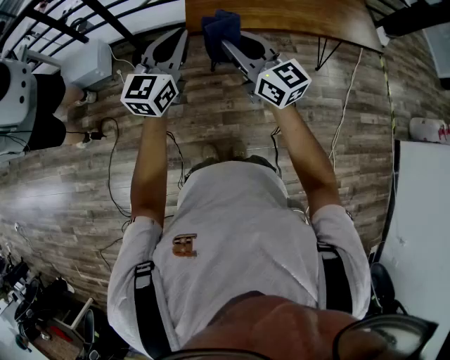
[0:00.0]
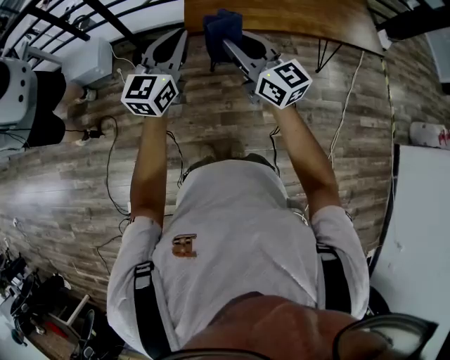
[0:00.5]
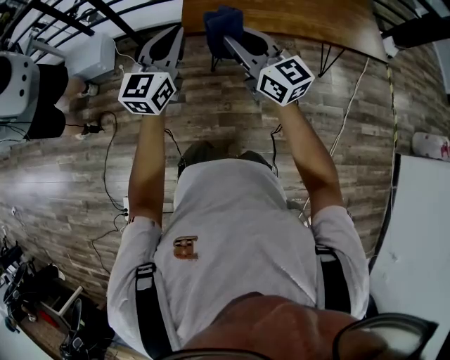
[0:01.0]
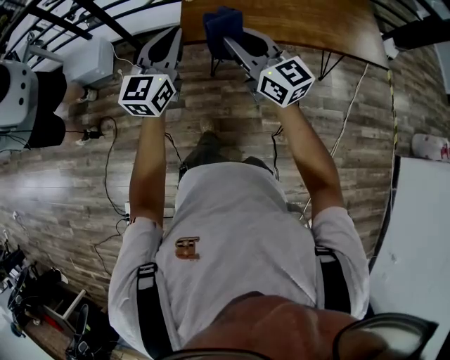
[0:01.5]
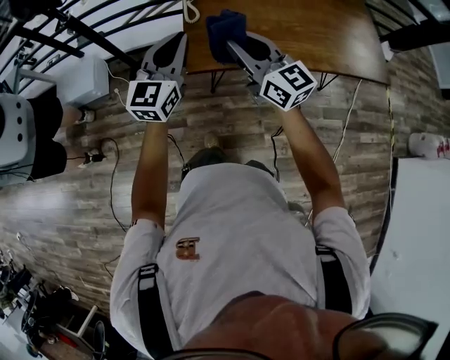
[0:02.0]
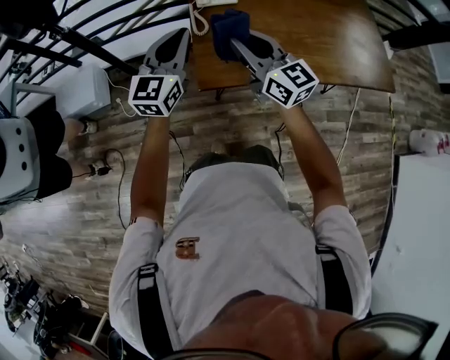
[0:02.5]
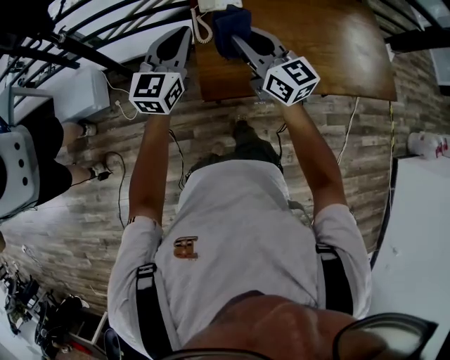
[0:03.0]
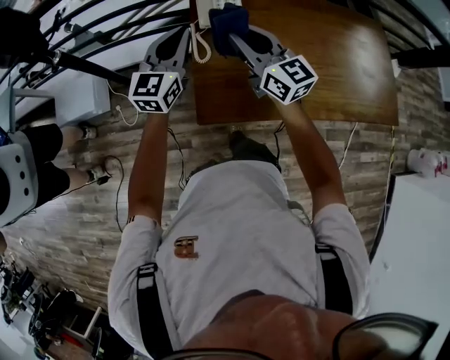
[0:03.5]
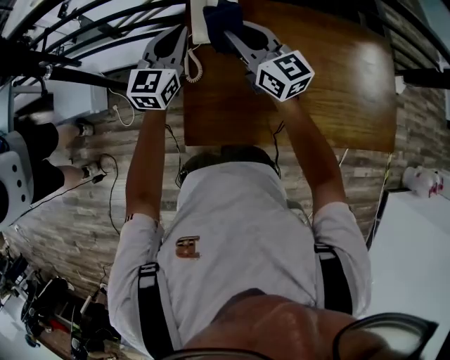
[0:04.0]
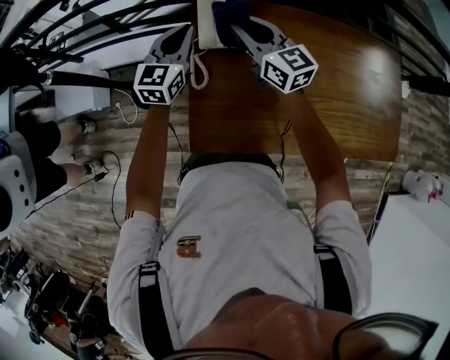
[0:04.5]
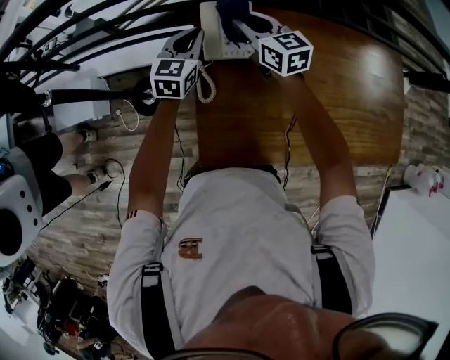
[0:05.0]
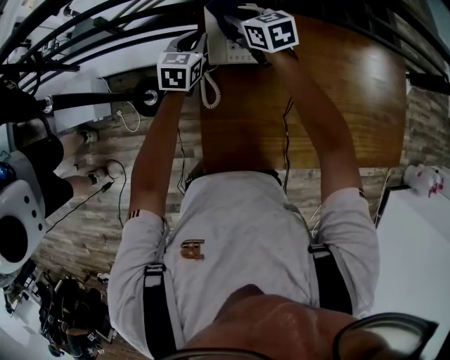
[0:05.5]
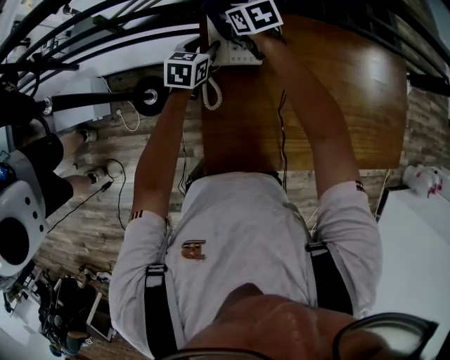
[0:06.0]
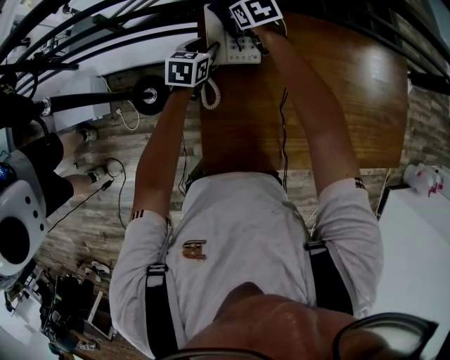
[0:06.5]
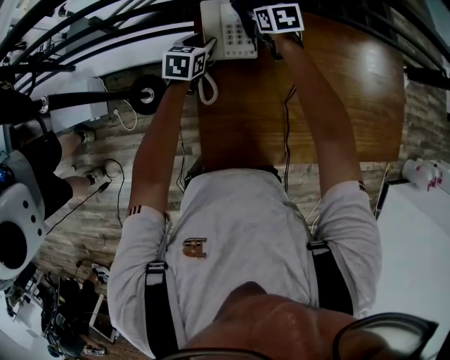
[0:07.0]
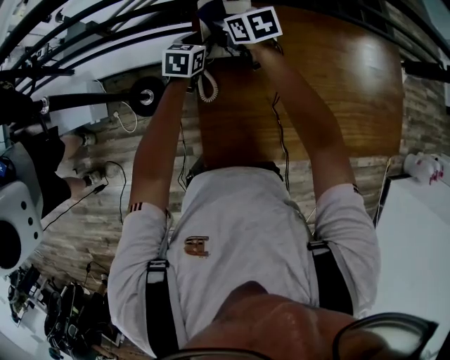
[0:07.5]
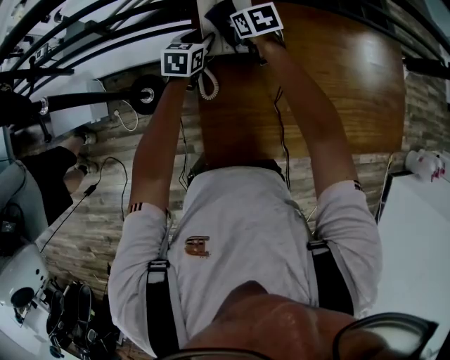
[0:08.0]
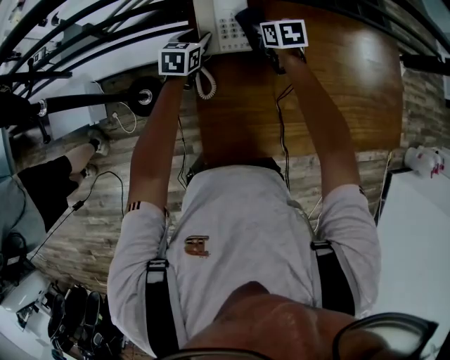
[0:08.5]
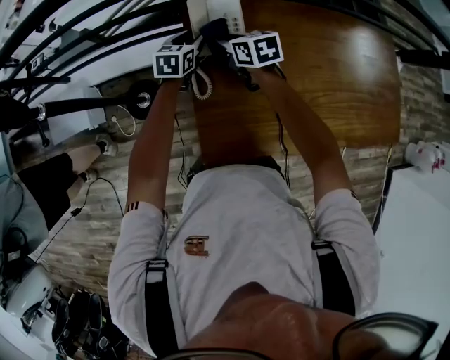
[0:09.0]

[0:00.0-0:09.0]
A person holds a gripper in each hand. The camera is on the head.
0:00.0 to 0:02.0: The grippers both shift forward by roughly 25 cm.
0:02.0 to 0:04.5: The two grippers travel together, forward, roughly 50 cm.
0:04.5 to 0:07.0: The left gripper goes some 20 cm downward and forward, rotates approximately 30 degrees, and opens up. Meanwhile the right gripper is displaced forward and downward by roughly 25 cm, and tips its fingers downward by some 40 degrees.
0:07.0 to 0:09.0: The right gripper travels backward and to the left by about 15 cm.

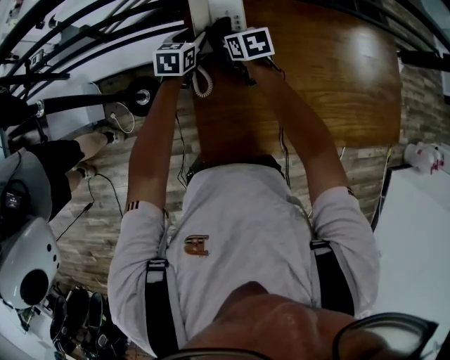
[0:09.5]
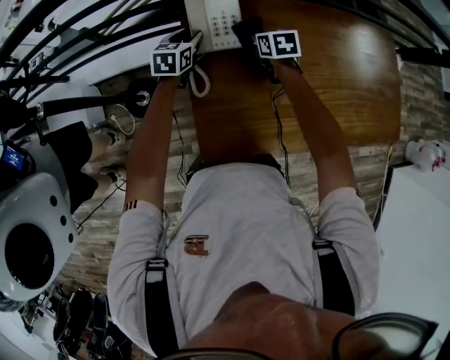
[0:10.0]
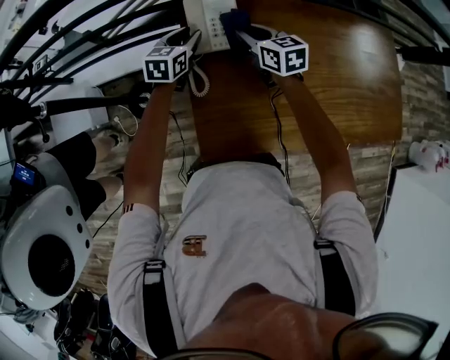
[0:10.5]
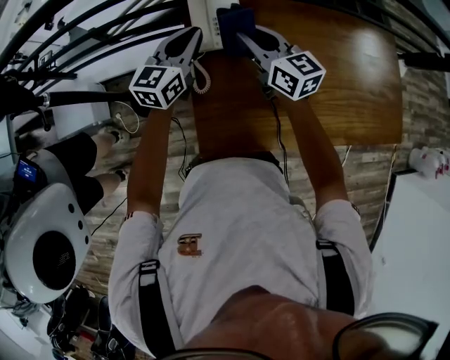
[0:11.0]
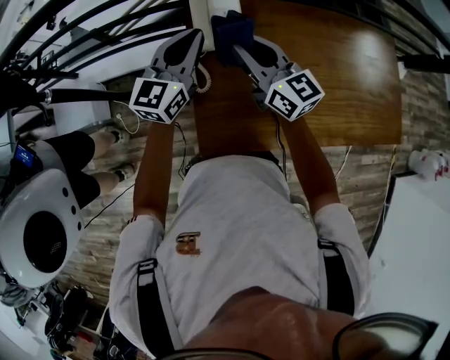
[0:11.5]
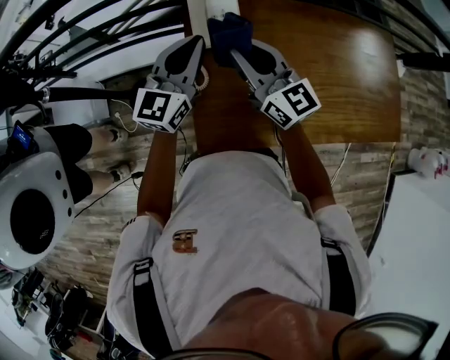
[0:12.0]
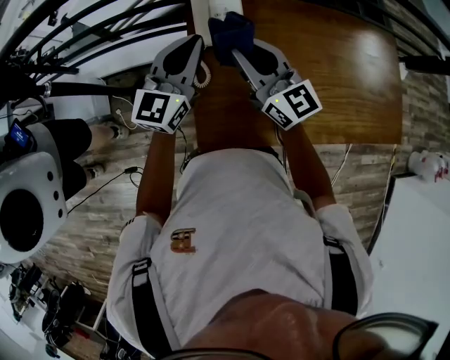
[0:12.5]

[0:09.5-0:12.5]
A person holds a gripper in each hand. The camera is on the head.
0:09.5 to 0:11.0: The two grippers go some 20 cm upward and backward. The left gripper turns by roughly 30 degrees, and closes up, while the right gripper tilts its fingers roughly 40 degrees upward.
0:11.0 to 0:12.5: The two grippers go approximately 10 cm backward and upward.

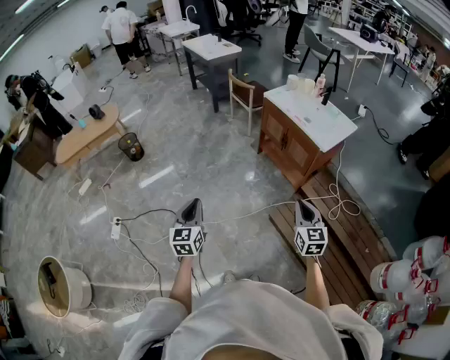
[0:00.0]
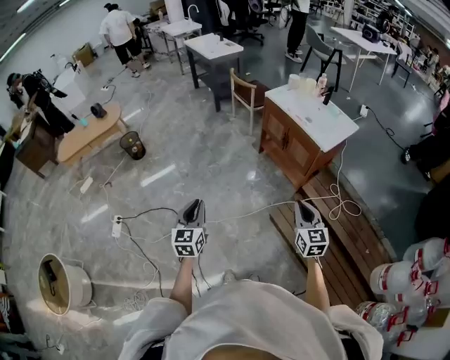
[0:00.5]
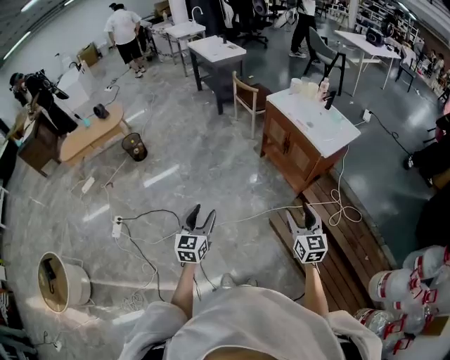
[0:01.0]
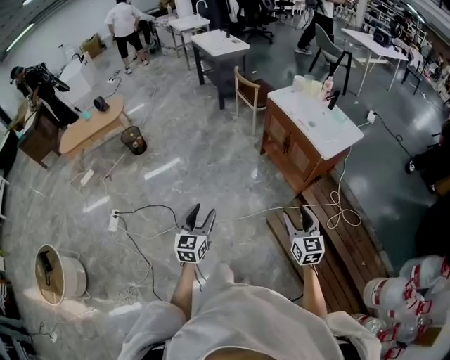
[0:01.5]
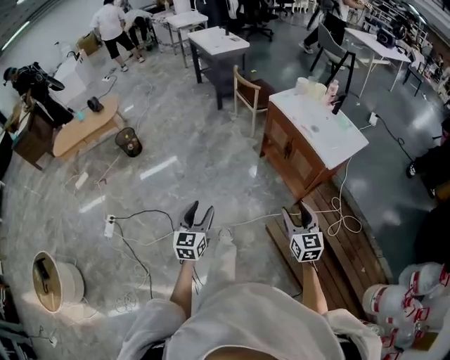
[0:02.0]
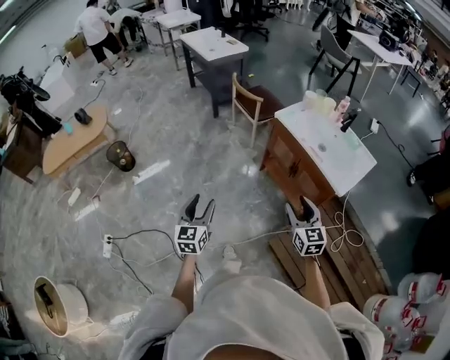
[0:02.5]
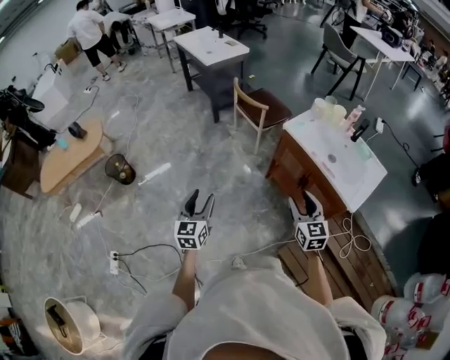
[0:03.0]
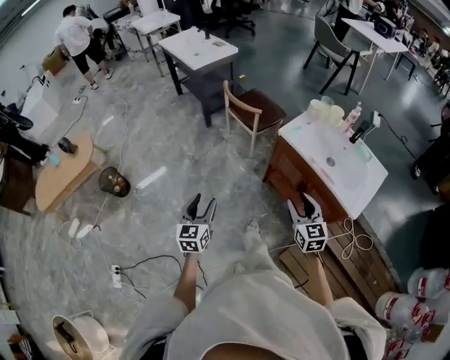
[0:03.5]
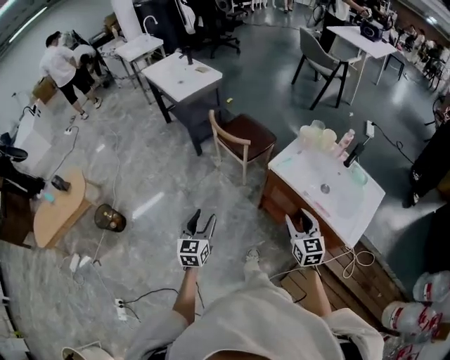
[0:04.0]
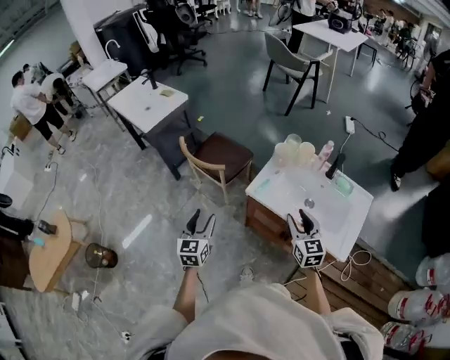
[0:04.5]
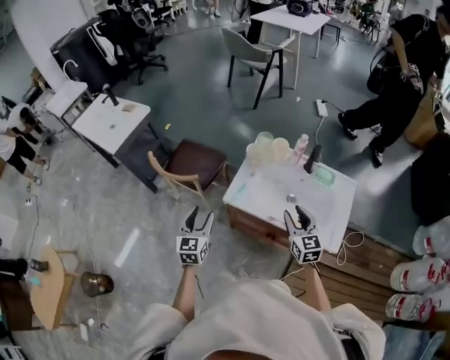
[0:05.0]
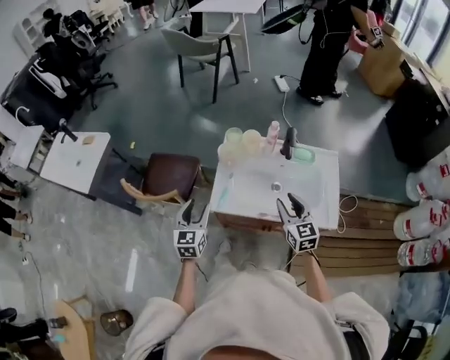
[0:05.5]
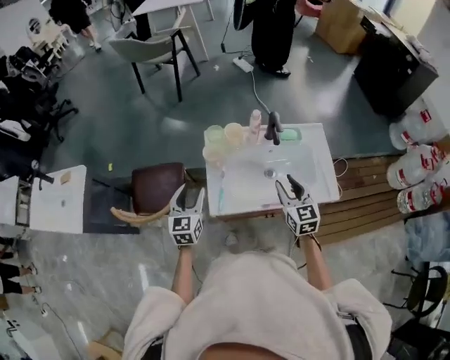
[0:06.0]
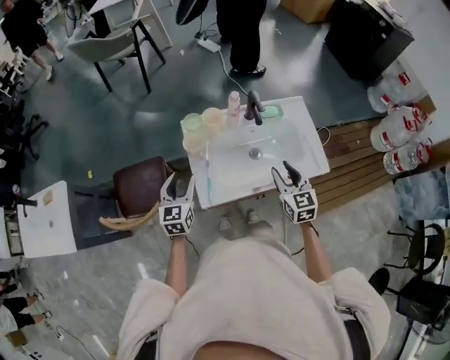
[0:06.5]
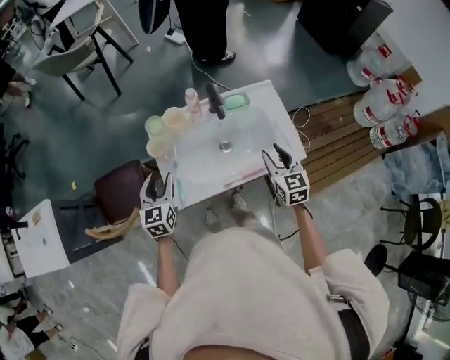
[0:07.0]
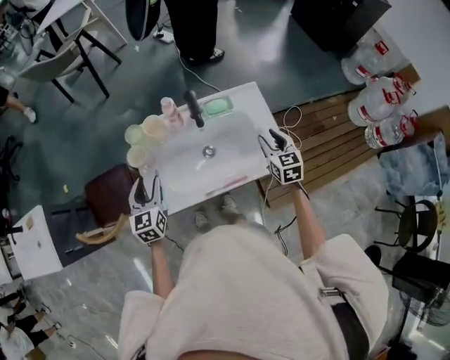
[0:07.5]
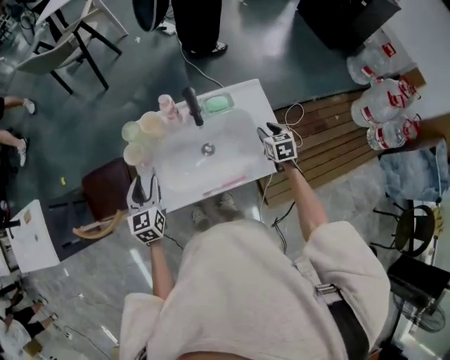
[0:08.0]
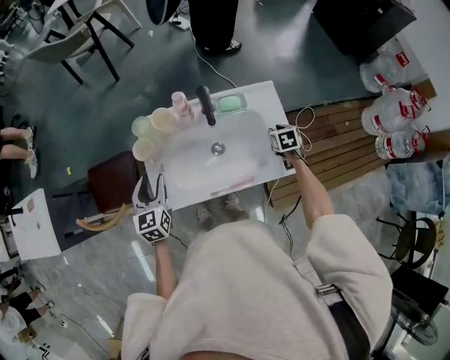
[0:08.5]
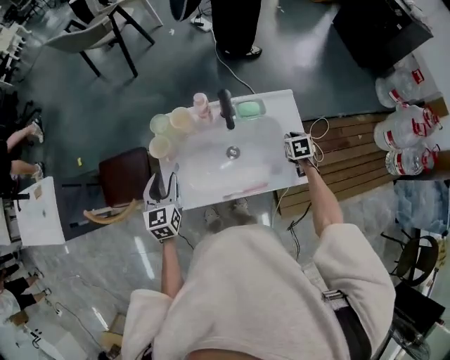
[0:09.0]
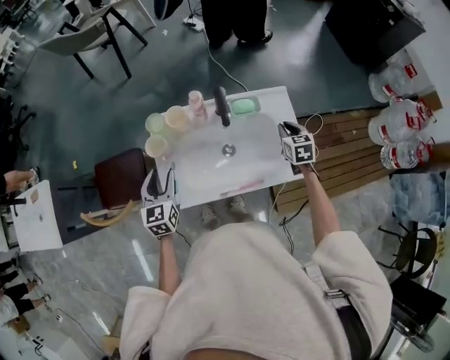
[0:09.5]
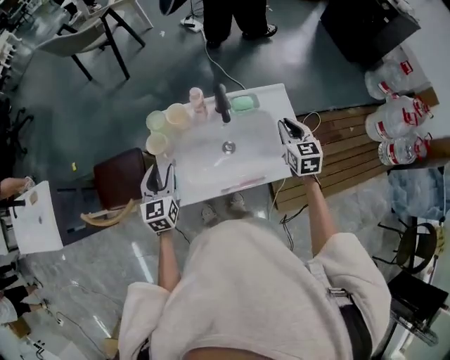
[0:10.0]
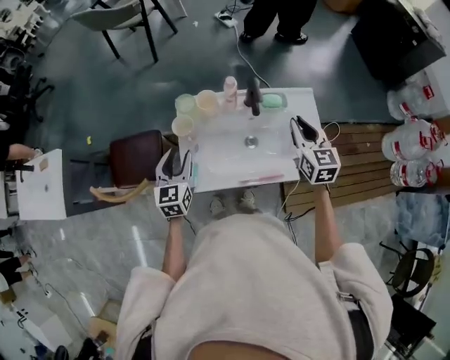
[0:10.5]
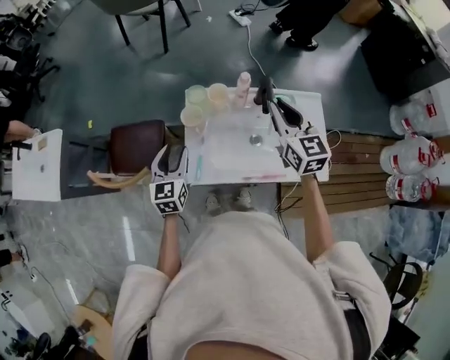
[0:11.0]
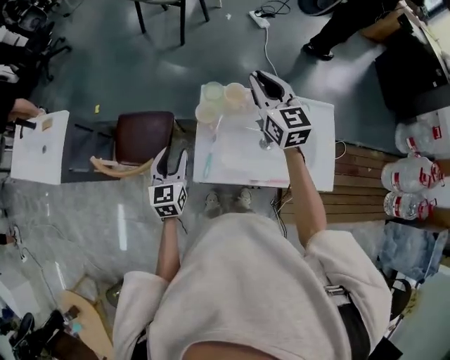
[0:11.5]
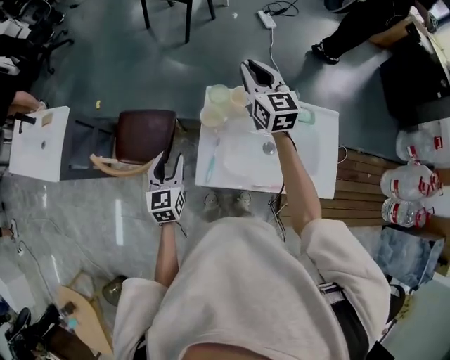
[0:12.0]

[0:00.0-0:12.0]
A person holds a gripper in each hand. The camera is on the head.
0:00.0 to 0:02.0: The left gripper moves forward, to the right and downward, about 15 cm, and opens its fingers, while the right gripper is displaced forward by approximately 15 cm, and opens.
0:02.0 to 0:04.0: The pair of grippers is taken forward, approximately 60 cm.
0:04.0 to 0:06.0: The right gripper shifts by roughly 25 cm, and turns by some 50 degrees, while the left gripper changes place by about 50 cm, and rotates about 50 degrees.
0:06.0 to 0:08.0: The right gripper goes some 35 cm to the right, downward and forward, and rotates about 30 degrees; the left gripper goes approximately 15 cm to the right and forward.
0:08.0 to 0:10.0: The right gripper is displaced upward and to the left by some 15 cm, and closes its fingers.
0:10.0 to 0:12.0: The left gripper moves to the left, some 15 cm. The right gripper travels to the left, forward and upward by about 40 cm, and changes its angle by roughly 30 degrees.

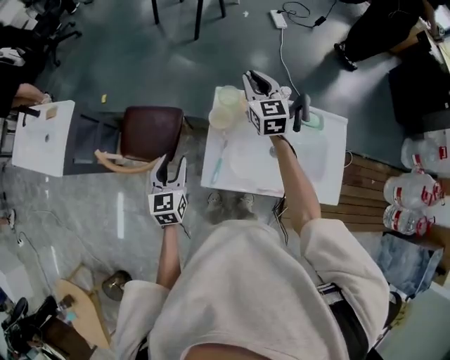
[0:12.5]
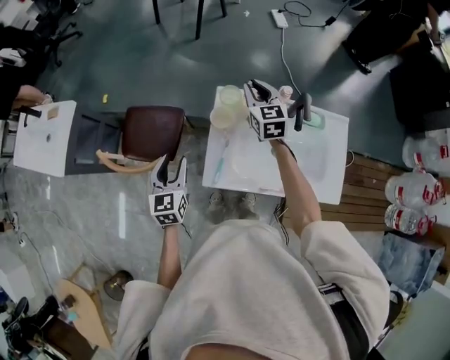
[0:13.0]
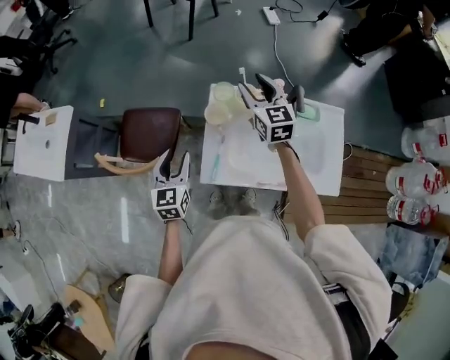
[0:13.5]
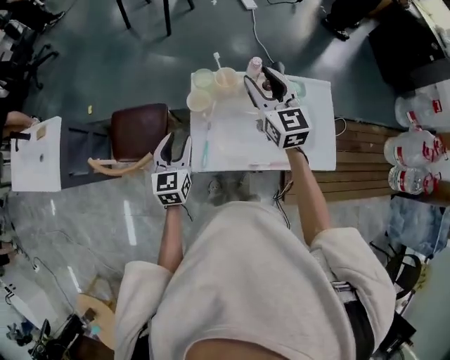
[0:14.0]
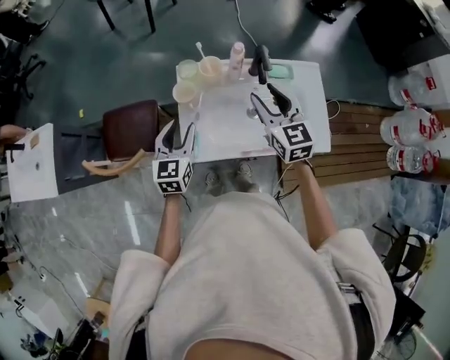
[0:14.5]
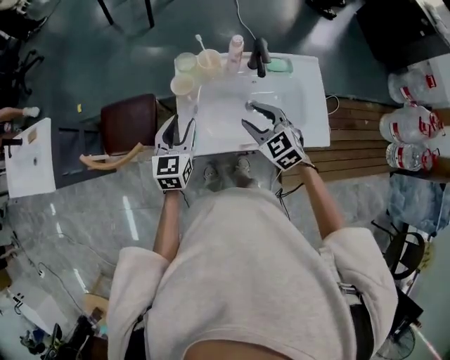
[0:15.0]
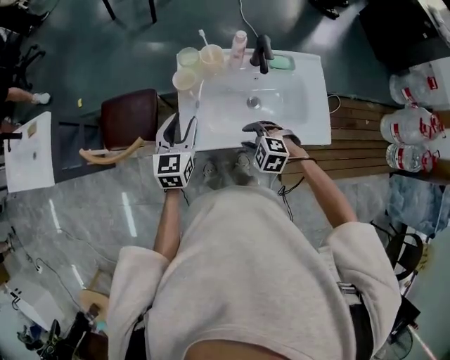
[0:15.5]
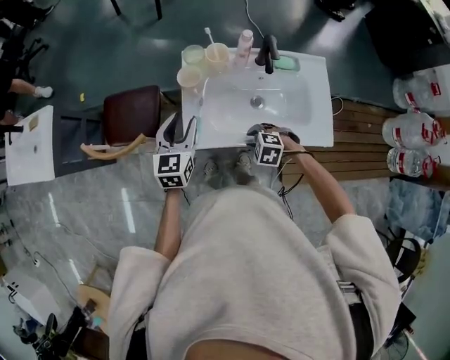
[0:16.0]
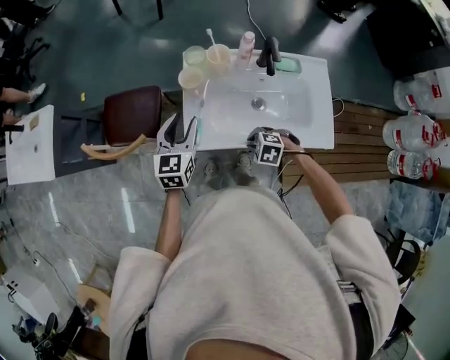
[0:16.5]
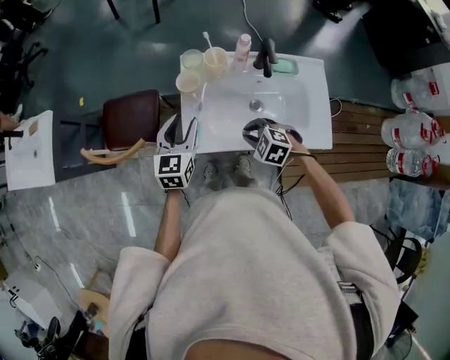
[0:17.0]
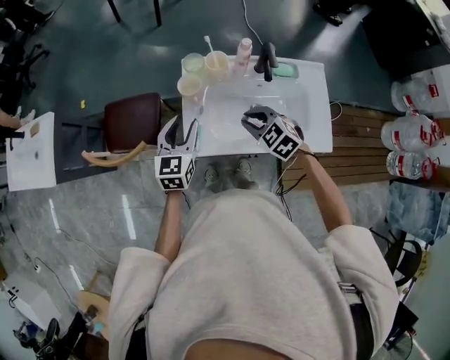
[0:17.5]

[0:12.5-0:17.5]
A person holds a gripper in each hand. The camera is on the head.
0:12.5 to 0:15.0: The left gripper is displaced to the right by approximately 15 cm. Meanwhile the right gripper travels backward by some 25 cm, changes its angle by approximately 30 degrees, and opens up.
0:15.0 to 0:17.5: The right gripper moves about 15 cm downward and comes back, and closes.
